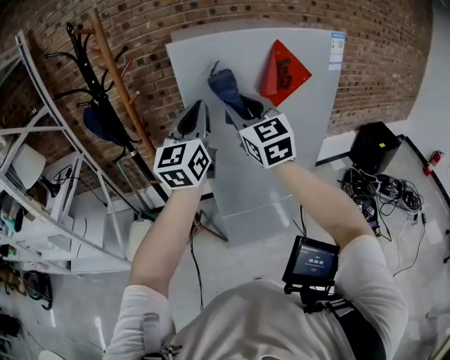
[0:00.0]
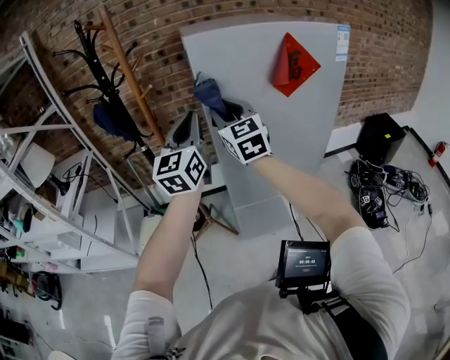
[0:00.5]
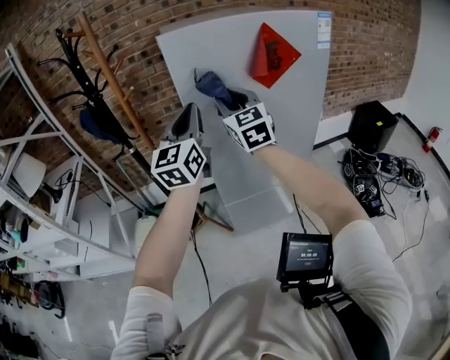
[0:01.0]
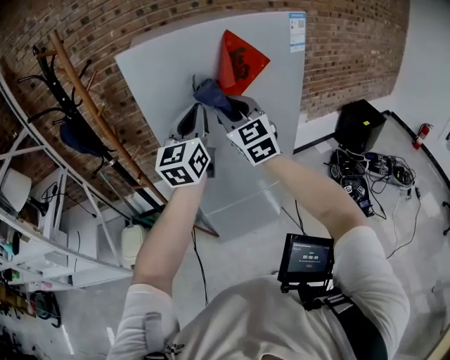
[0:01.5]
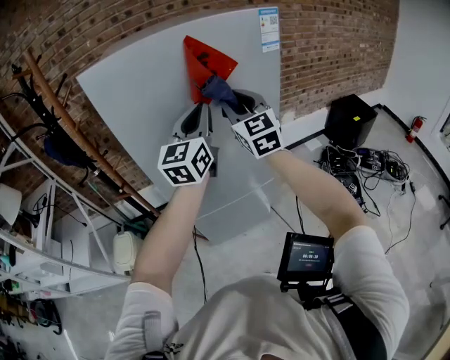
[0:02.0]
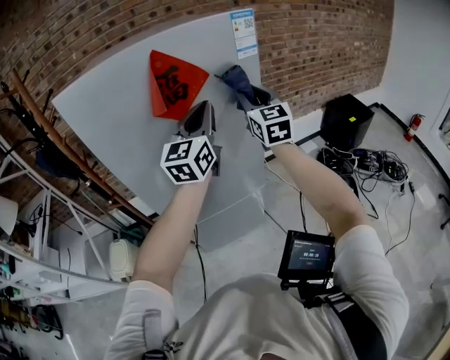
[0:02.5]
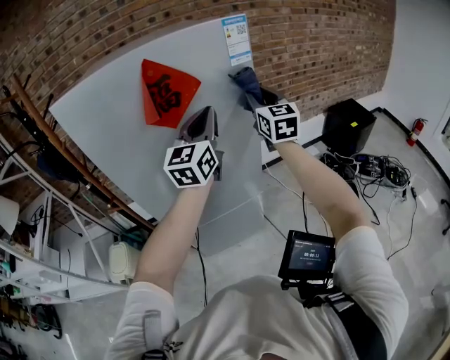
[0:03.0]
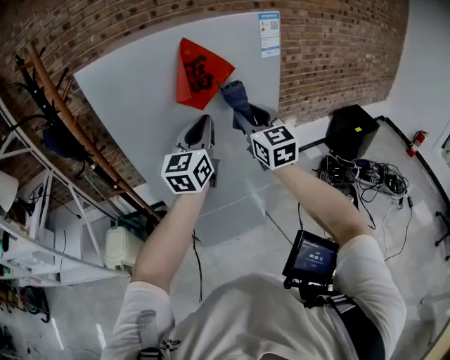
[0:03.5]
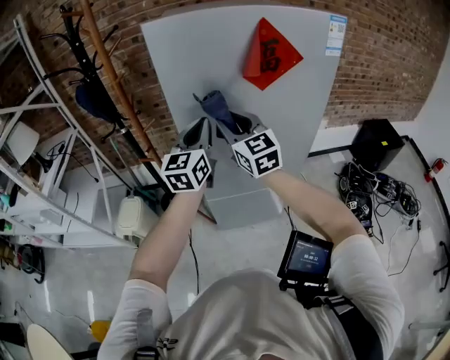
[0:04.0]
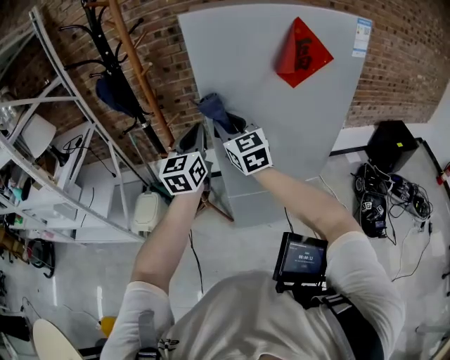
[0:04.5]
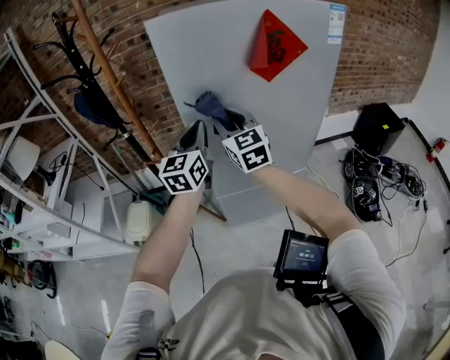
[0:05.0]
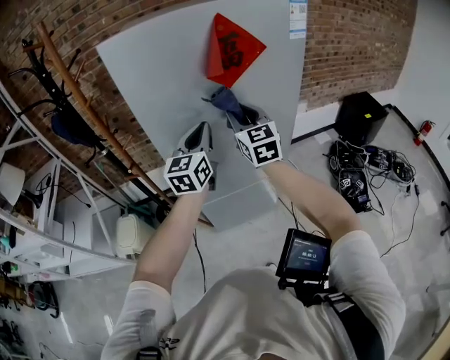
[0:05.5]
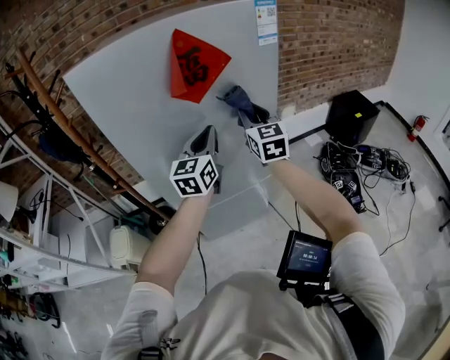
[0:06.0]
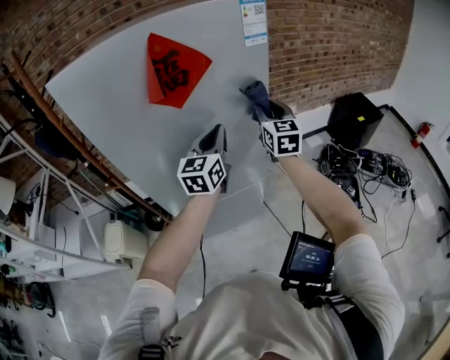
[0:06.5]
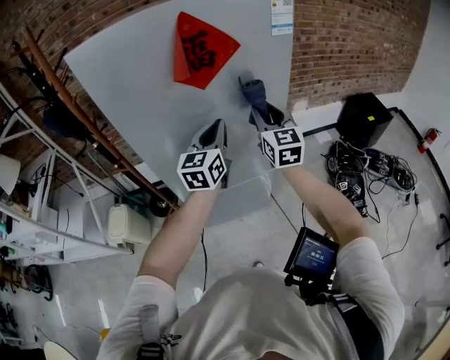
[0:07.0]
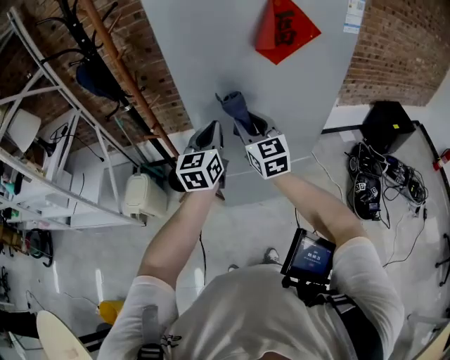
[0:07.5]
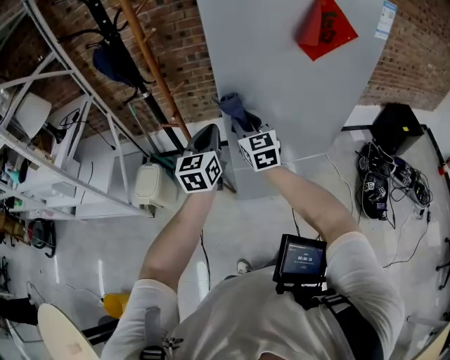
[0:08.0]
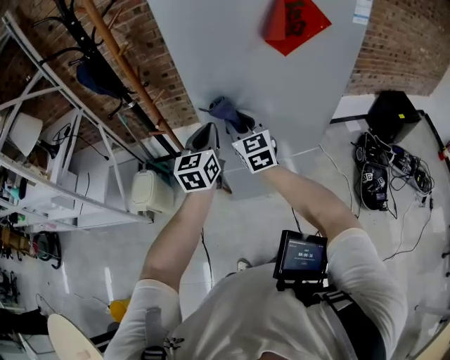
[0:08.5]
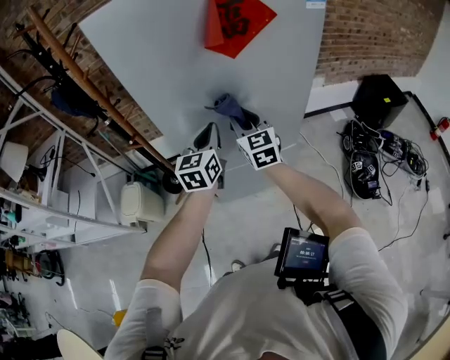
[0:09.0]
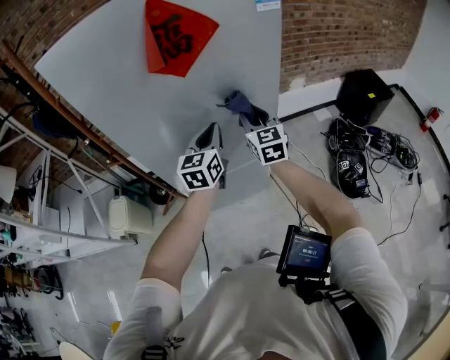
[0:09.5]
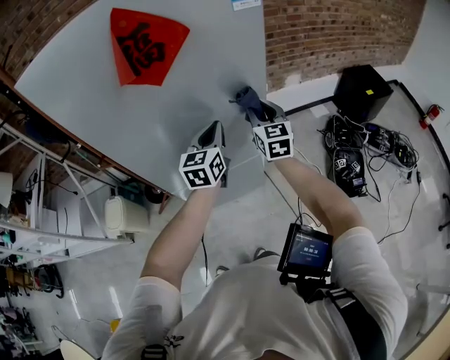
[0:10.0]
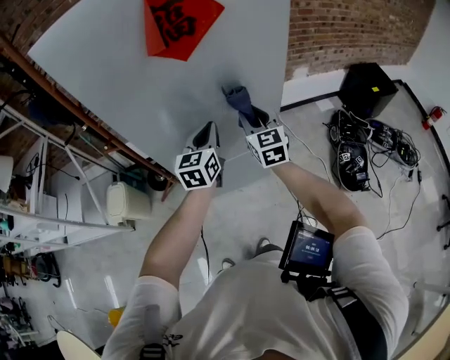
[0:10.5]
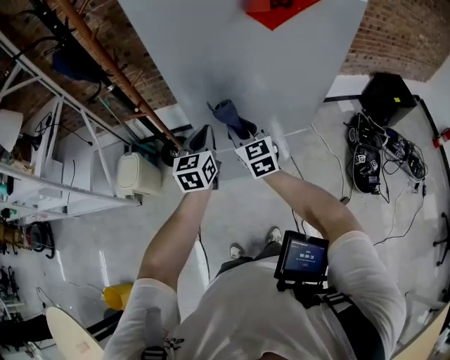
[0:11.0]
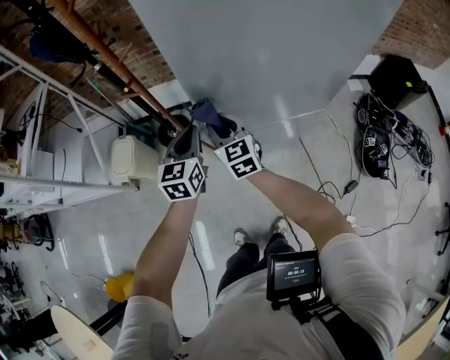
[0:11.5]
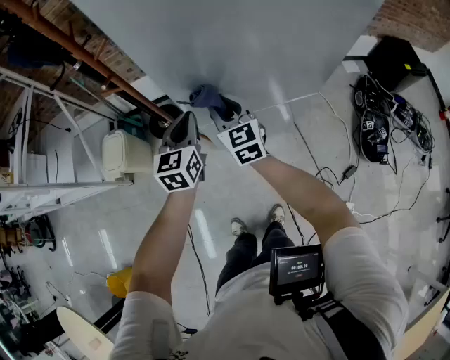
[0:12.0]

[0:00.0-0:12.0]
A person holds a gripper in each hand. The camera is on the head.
0:00.0 to 0:02.0: Both grippers move to the right, some 20 cm.
0:02.0 to 0:04.0: The two grippers go about 15 cm to the left and downward. The right gripper rotates roughly 20 degrees.
0:04.0 to 0:06.0: Both grippers travel together to the right, roughly 20 cm. The right gripper swivels about 30 degrees.
0:06.0 to 0:08.0: Both grippers move to the left, approximately 30 cm. The right gripper turns by some 20 degrees; the left gripper turns by some 20 degrees.
0:08.0 to 0:10.0: Both grippers travel together to the right, about 40 cm.
0:10.0 to 0:12.0: The grippers both shift to the left and downward by some 40 cm. The right gripper changes its angle by about 20 degrees.

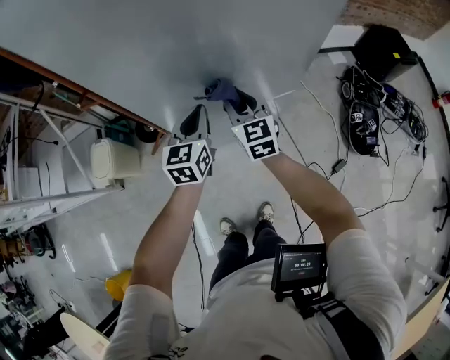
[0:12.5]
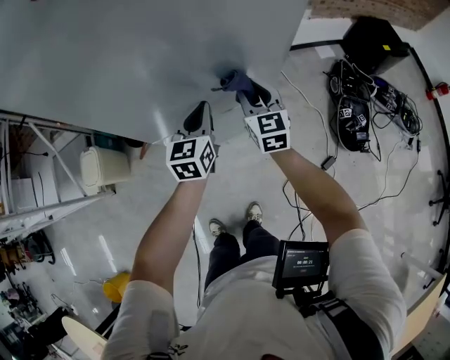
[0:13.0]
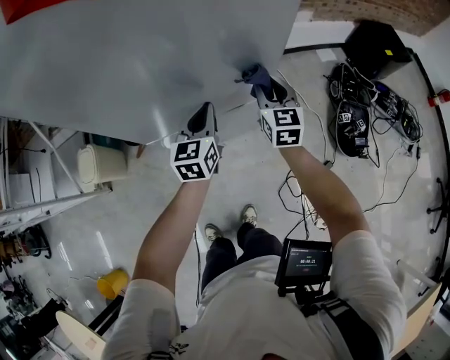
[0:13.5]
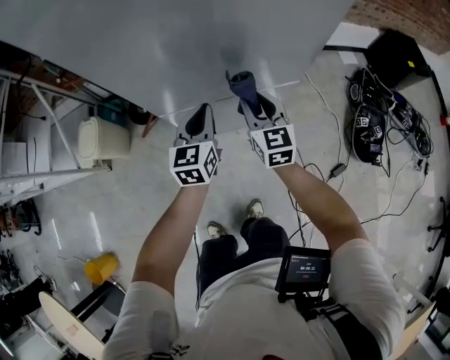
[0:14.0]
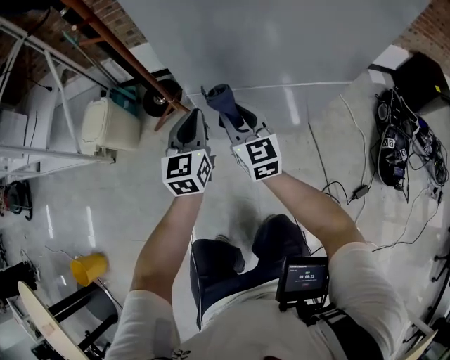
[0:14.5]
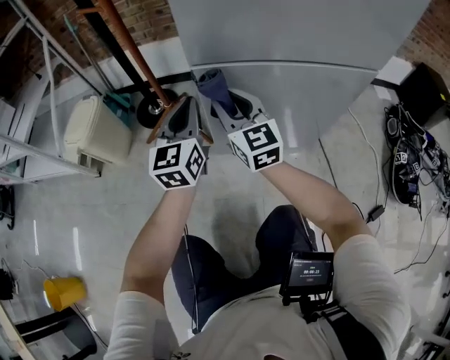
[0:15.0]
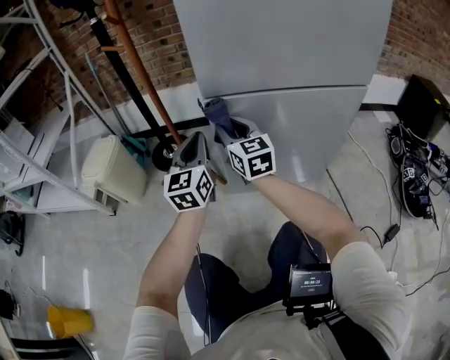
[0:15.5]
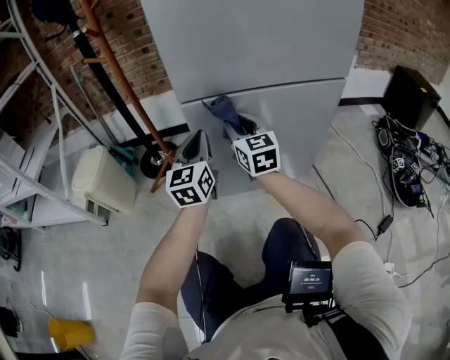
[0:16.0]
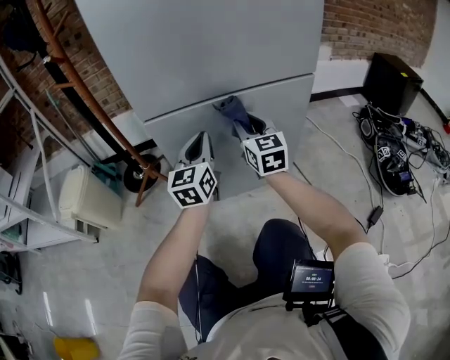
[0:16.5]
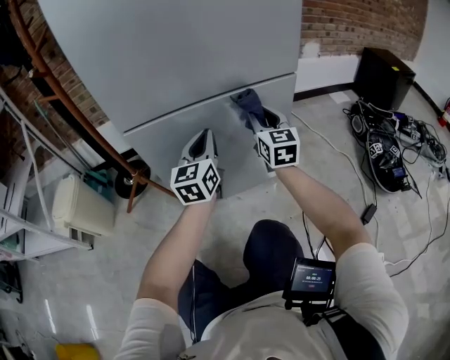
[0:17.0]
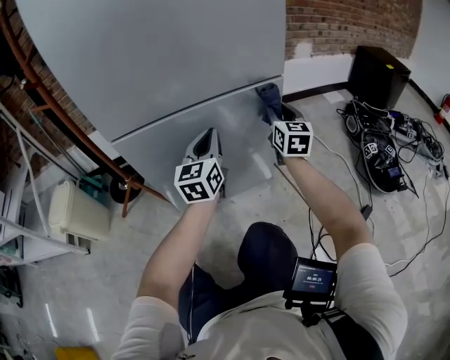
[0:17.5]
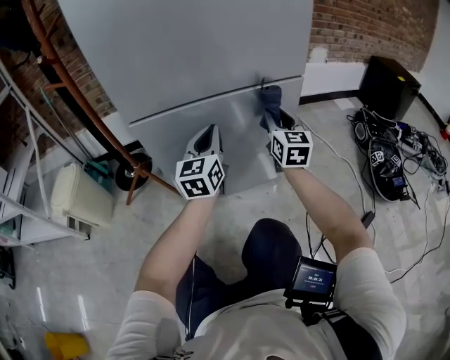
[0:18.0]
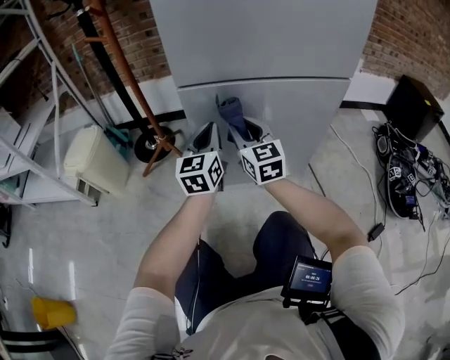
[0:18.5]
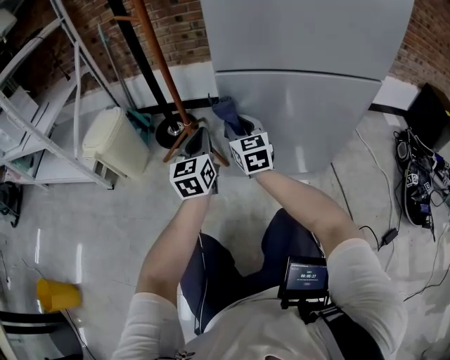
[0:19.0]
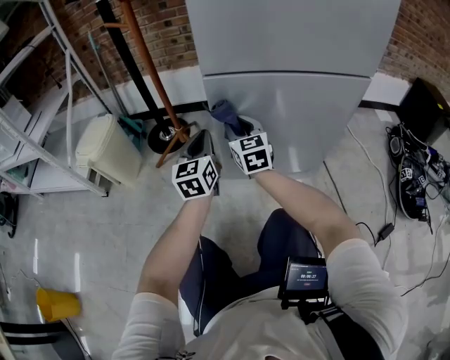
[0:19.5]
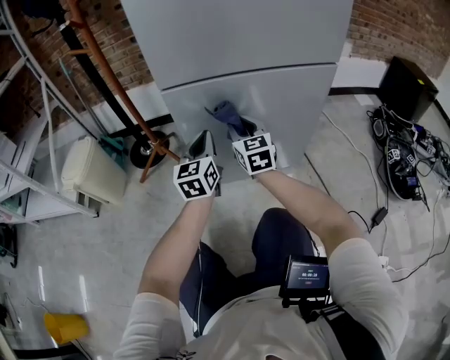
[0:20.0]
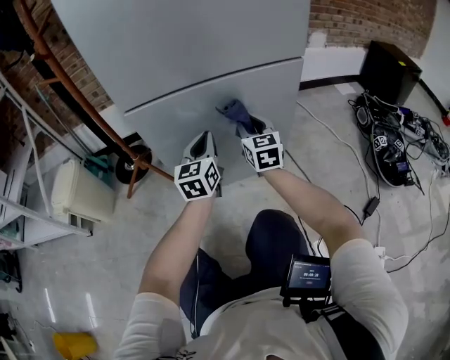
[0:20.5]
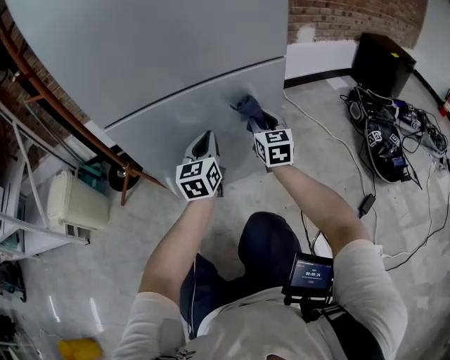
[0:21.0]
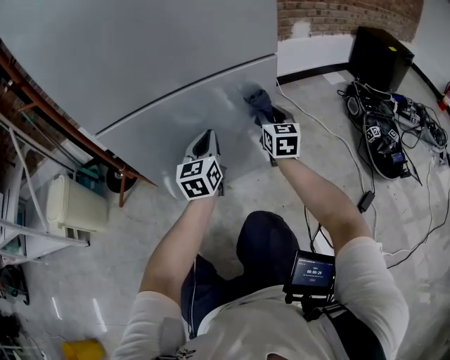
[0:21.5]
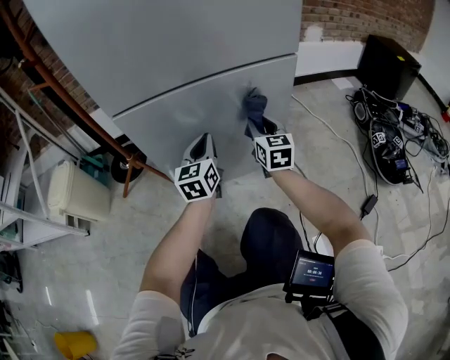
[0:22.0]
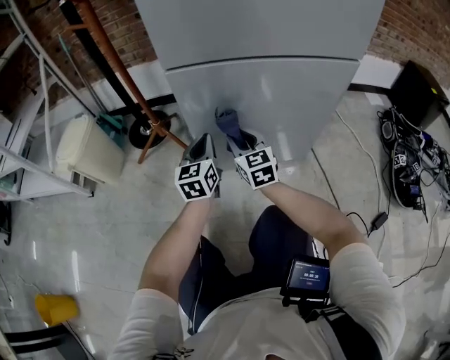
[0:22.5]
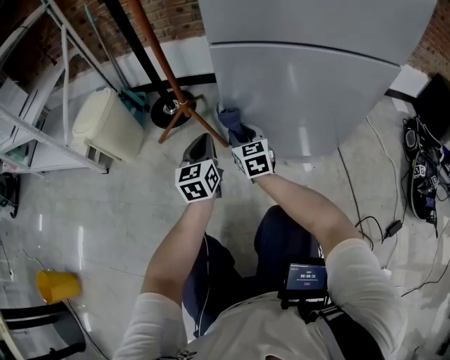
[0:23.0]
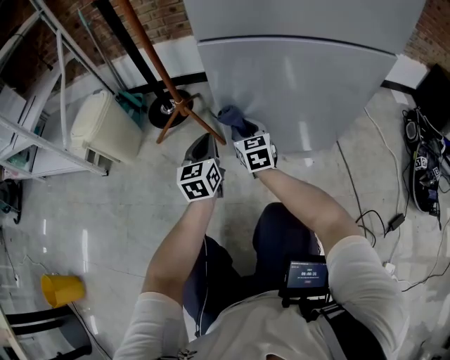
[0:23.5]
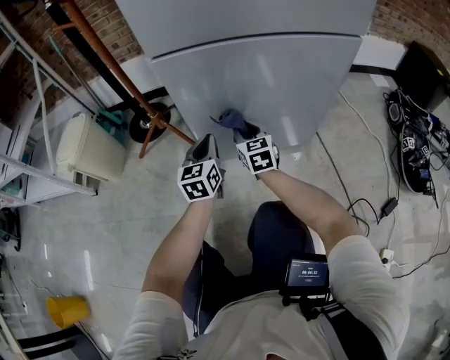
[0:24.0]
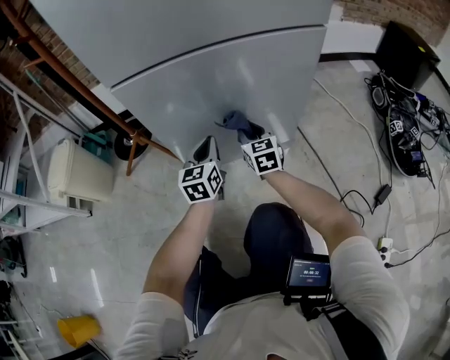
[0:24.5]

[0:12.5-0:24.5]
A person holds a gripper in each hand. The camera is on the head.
0:12.5 to 0:14.5: Both grippers travel together downward and to the left, some 25 cm.
0:14.5 to 0:16.5: The left gripper moves downward and to the right, approximately 15 cm; the right gripper is displaced to the right and downward by approximately 20 cm.
0:16.5 to 0:18.5: The right gripper moves roughly 25 cm to the right and comes back; the left gripper travels to the right and back again, roughly 15 cm each way.
0:18.5 to 0:20.5: The grippers both shift to the right by some 15 cm.
0:20.5 to 0:22.5: The grippers both shift to the left and downward by roughly 15 cm.
0:22.5 to 0:24.5: The left gripper goes approximately 10 cm to the right. The right gripper goes about 15 cm to the right and downward.

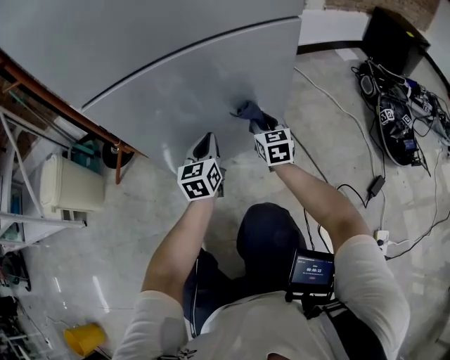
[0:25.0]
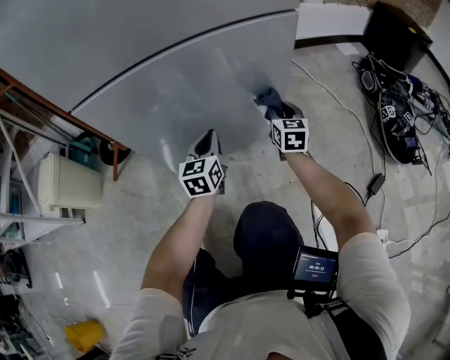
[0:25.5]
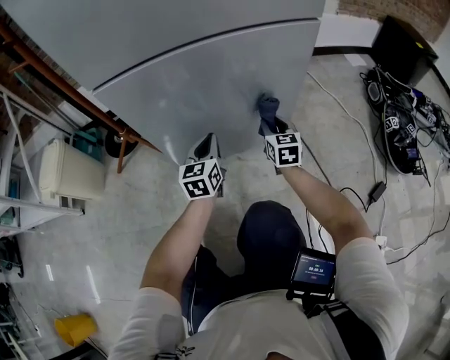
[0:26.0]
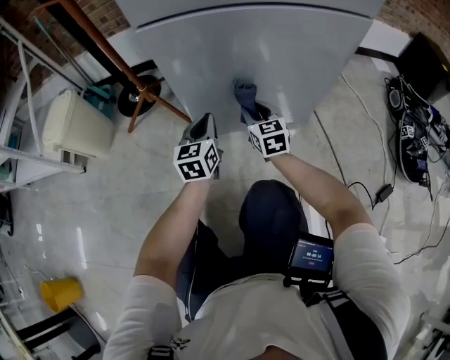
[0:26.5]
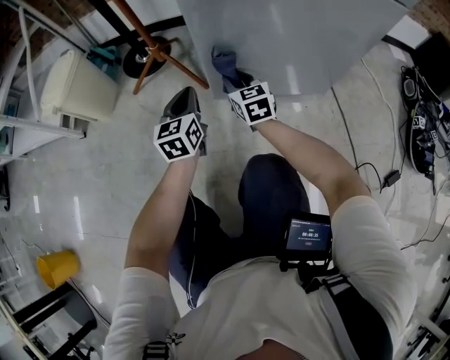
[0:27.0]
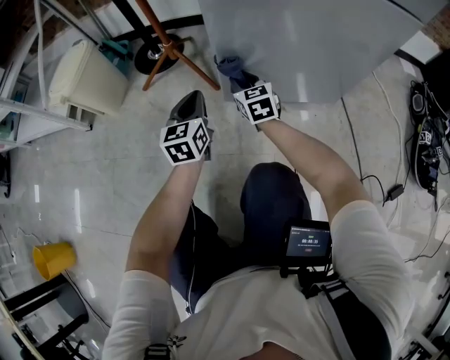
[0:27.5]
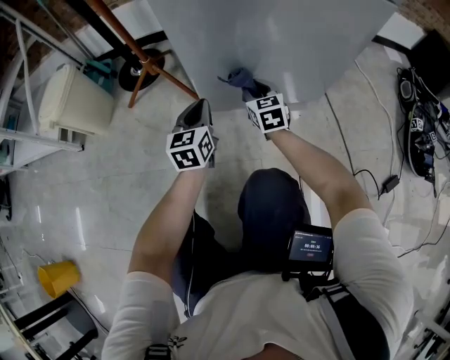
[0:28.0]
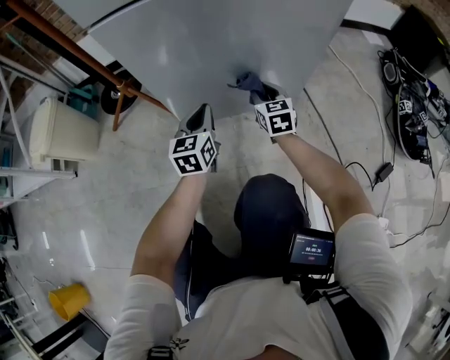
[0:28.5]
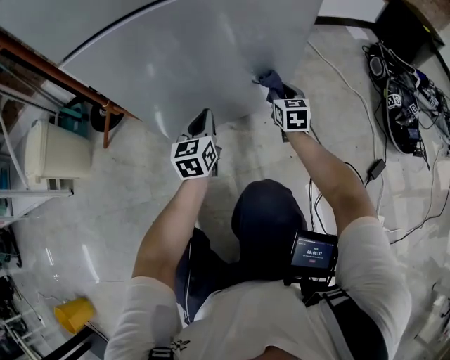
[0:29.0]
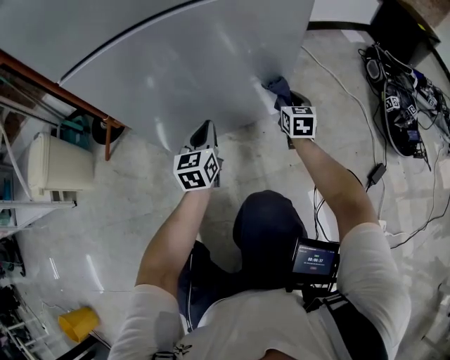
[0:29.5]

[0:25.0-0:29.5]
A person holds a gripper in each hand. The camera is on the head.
0:25.0 to 0:27.0: The left gripper changes place by some 25 cm; the right gripper moves approximately 30 cm, and turns by approximately 30 degrees.
0:27.0 to 0:29.5: The left gripper moves approximately 25 cm, while the right gripper moves about 40 cm, and changes its angle by approximately 30 degrees.
